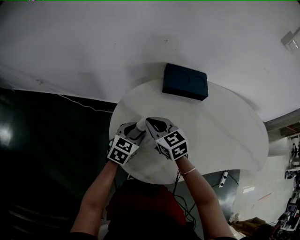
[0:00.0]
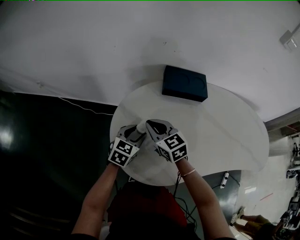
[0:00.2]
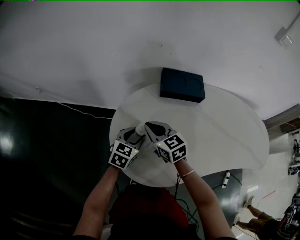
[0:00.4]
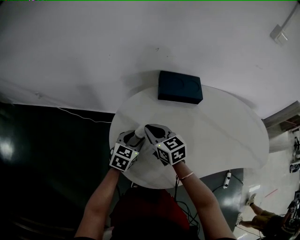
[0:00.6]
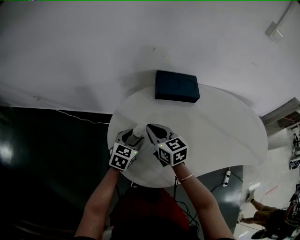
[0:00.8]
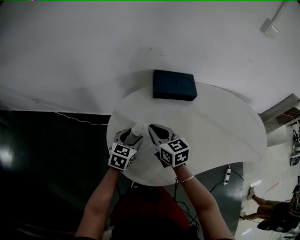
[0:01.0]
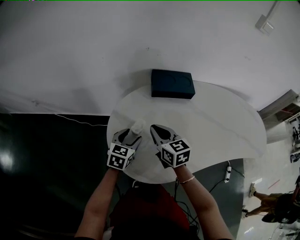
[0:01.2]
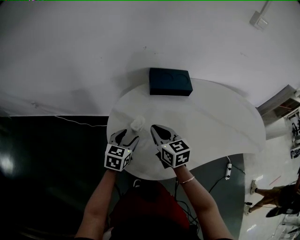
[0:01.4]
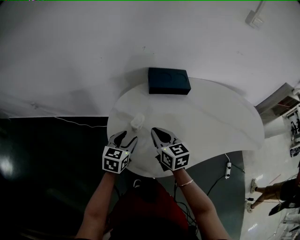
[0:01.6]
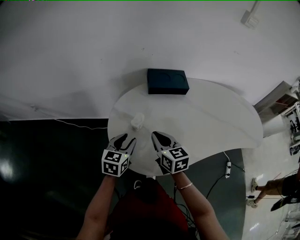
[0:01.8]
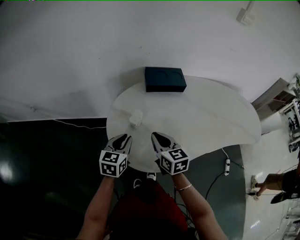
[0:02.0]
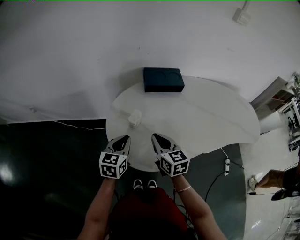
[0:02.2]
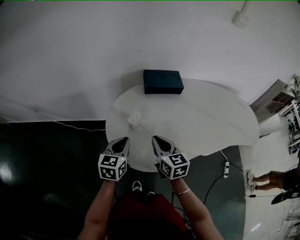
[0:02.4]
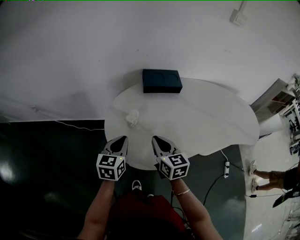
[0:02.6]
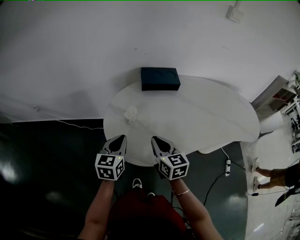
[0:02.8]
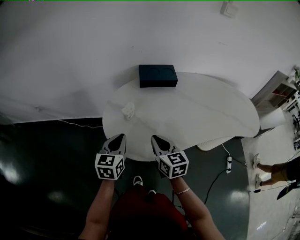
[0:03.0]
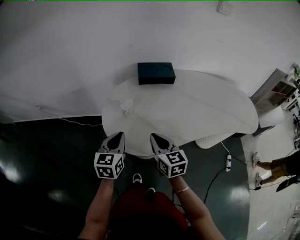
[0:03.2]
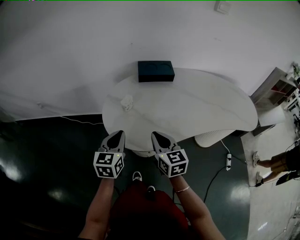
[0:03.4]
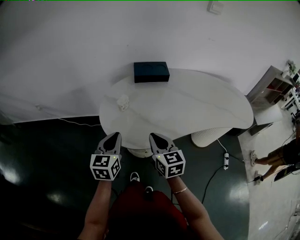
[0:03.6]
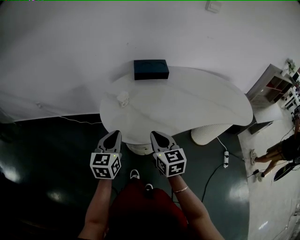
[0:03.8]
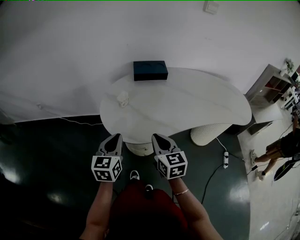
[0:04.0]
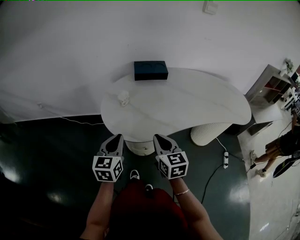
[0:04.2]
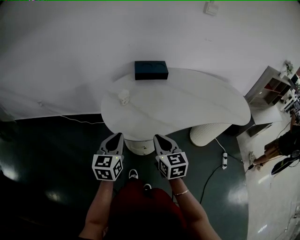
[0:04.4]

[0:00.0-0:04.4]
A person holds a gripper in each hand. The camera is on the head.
0:00.0 to 0:01.4: The right gripper goes approximately 5 cm to the right, and turns by some 20 degrees.
0:01.4 to 0:03.0: The left gripper travels backward and upward by approximately 15 cm, and closes, while the right gripper travels backward by roughly 15 cm.
0:03.0 to 0:04.4: The grippers both shift backward by roughly 15 cm.

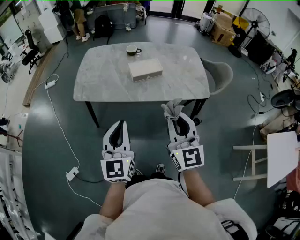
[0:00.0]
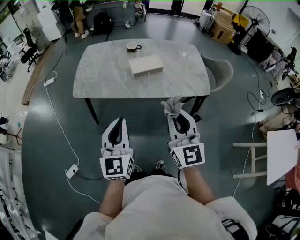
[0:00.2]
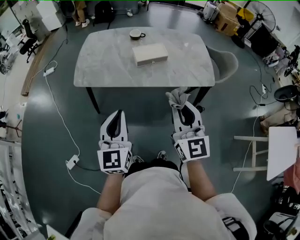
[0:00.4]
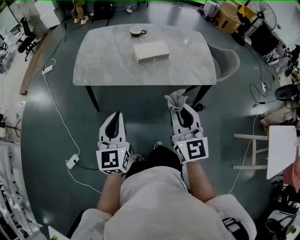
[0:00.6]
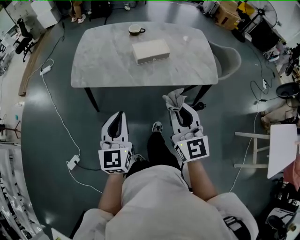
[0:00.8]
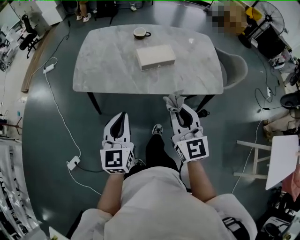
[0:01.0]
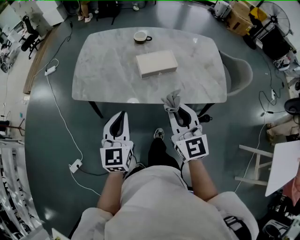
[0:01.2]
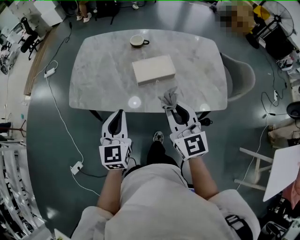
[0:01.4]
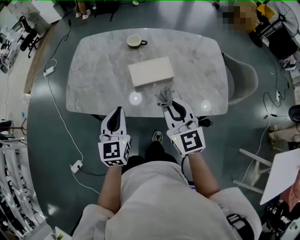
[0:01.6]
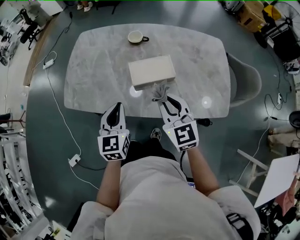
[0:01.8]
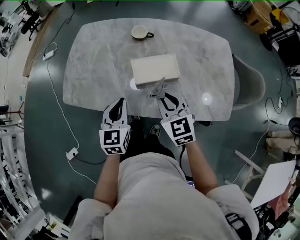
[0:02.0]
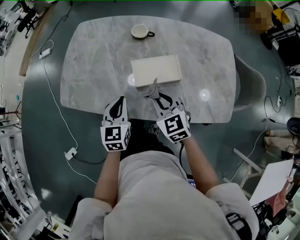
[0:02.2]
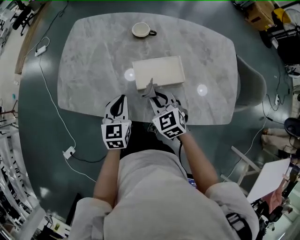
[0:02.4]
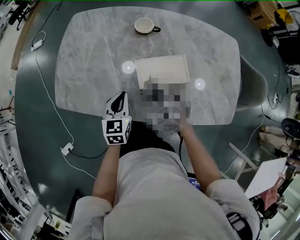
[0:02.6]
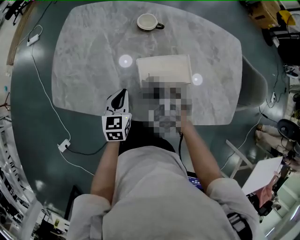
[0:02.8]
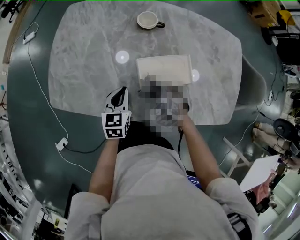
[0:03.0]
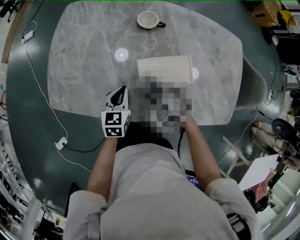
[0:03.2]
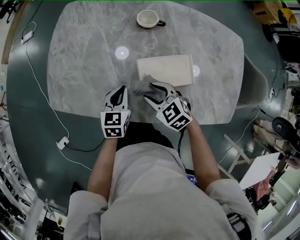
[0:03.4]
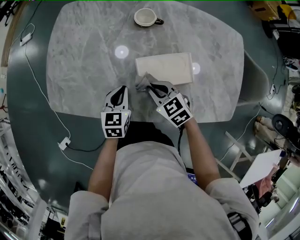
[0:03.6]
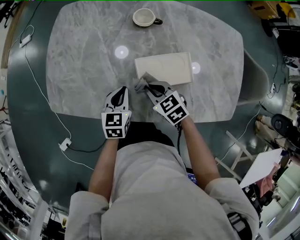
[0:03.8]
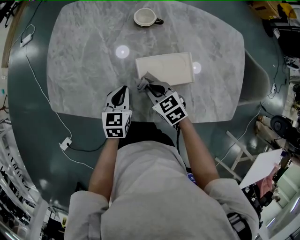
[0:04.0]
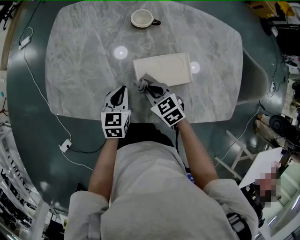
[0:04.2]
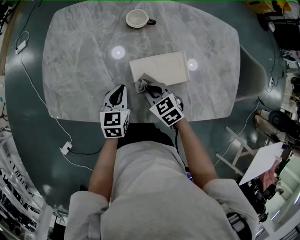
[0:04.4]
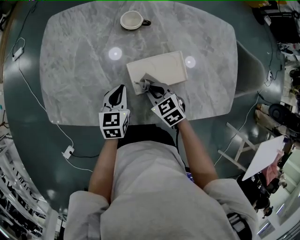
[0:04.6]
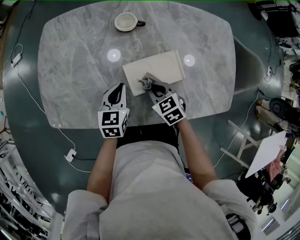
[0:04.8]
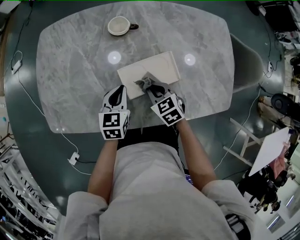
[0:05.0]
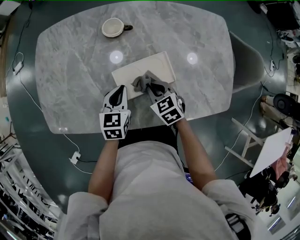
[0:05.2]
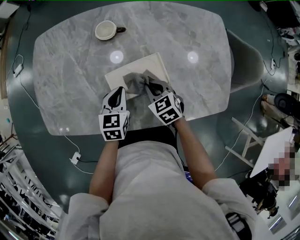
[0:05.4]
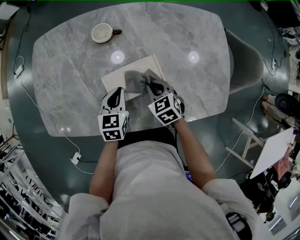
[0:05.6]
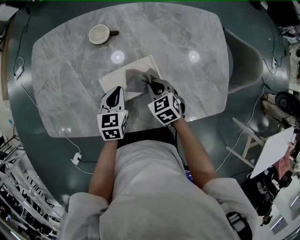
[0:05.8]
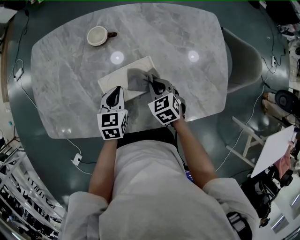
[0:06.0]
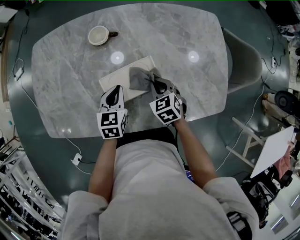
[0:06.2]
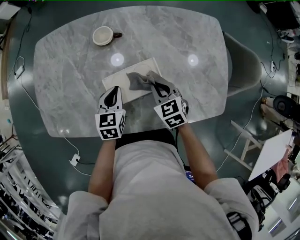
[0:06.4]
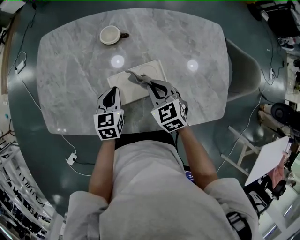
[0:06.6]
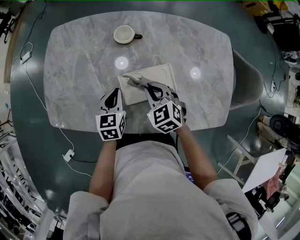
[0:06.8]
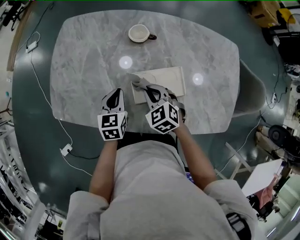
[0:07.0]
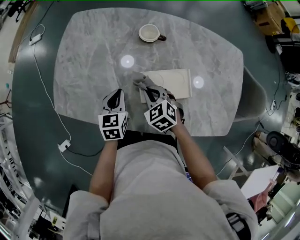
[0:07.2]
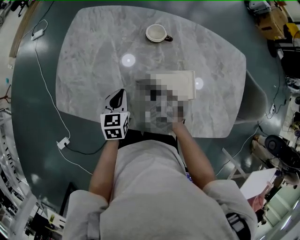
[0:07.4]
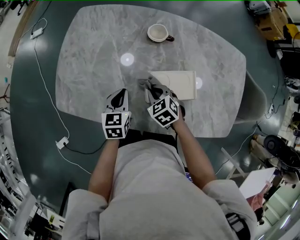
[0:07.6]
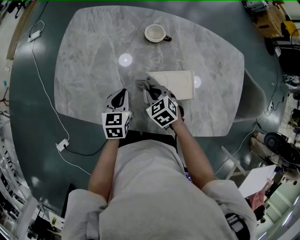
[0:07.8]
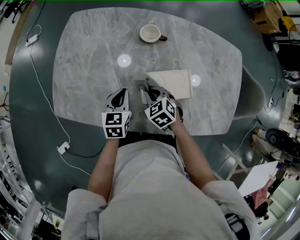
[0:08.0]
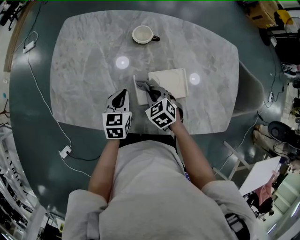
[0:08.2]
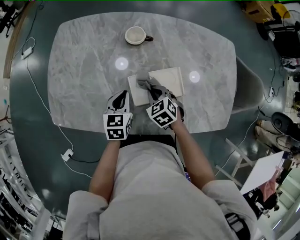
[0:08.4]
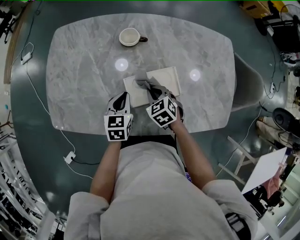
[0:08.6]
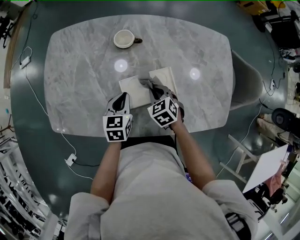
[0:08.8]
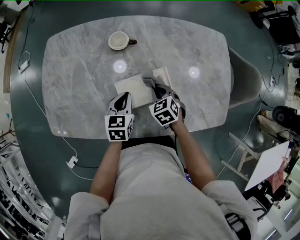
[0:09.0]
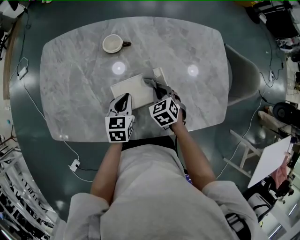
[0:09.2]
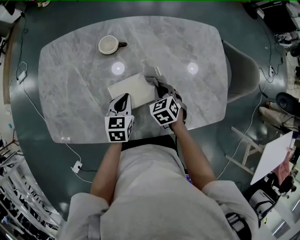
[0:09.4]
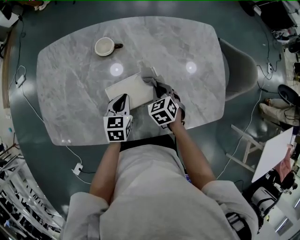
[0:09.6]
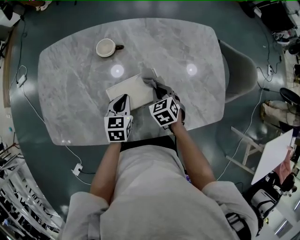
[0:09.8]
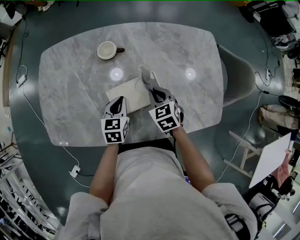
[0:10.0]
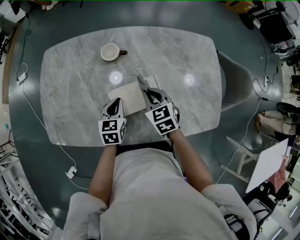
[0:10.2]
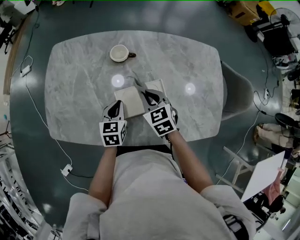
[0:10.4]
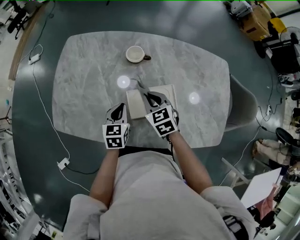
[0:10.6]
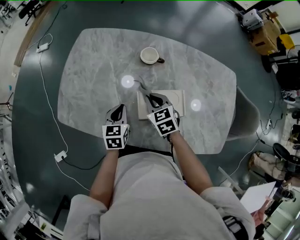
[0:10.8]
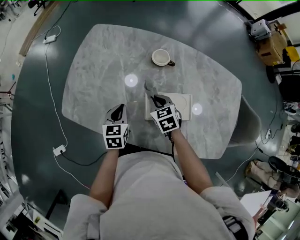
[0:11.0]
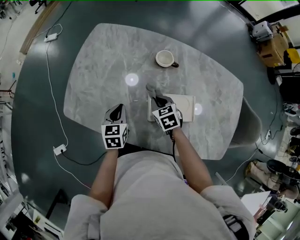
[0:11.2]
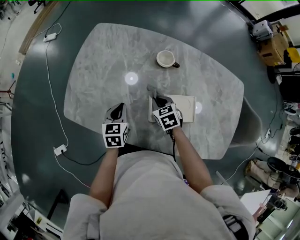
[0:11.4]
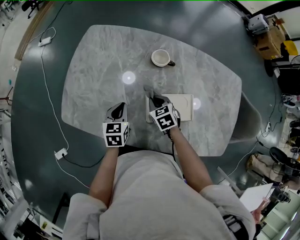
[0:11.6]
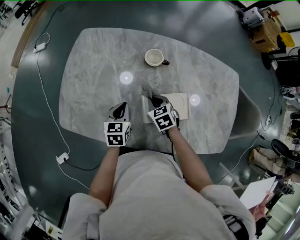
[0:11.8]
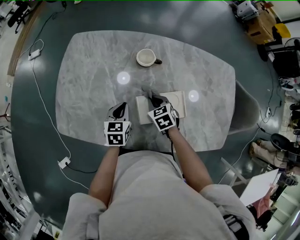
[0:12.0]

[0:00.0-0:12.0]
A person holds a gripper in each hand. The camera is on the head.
0:00.0 to 0:01.6: The left gripper moves forward and downward, approximately 30 cm. Meanwhile the right gripper travels forward by about 30 cm.
0:01.6 to 0:03.0: The grippers both shift downward and forward by roughly 30 cm. The left gripper rotates some 20 degrees; the right gripper points its fingers approximately 50 degrees further downward.
0:03.0 to 0:04.4: The right gripper changes its angle by roughly 30 degrees, and opens and closes again.
0:04.4 to 0:06.0: The grippers both shift to the right by about 15 cm.
0:06.0 to 0:07.6: The grippers both shift to the left by approximately 20 cm. The right gripper turns by roughly 30 degrees.
0:07.6 to 0:09.0: Both grippers travel together to the right, approximately 15 cm. The right gripper turns by roughly 20 degrees.
0:09.0 to 0:10.4: The right gripper is displaced upward by about 10 cm.
0:10.4 to 0:12.0: The right gripper heads downward and to the left, covering some 10 cm; the left gripper moves to the left, some 10 cm.

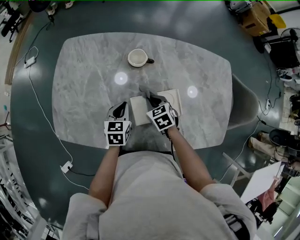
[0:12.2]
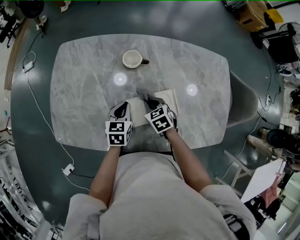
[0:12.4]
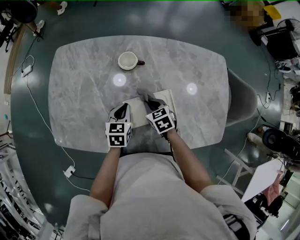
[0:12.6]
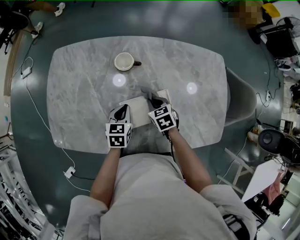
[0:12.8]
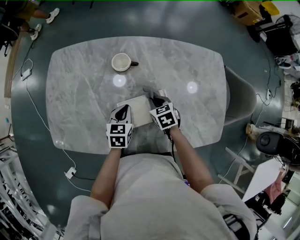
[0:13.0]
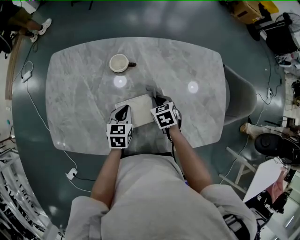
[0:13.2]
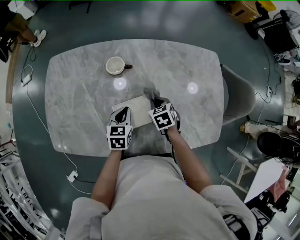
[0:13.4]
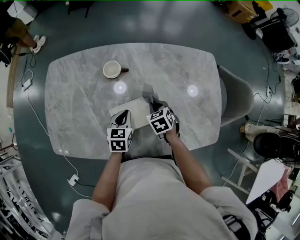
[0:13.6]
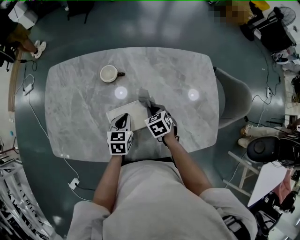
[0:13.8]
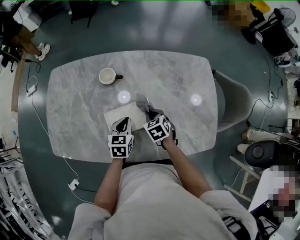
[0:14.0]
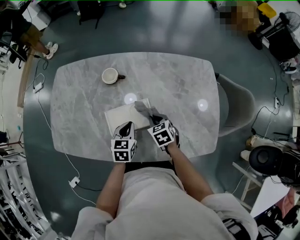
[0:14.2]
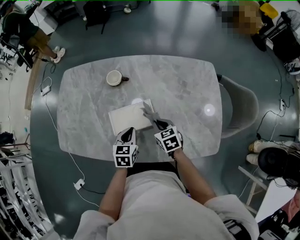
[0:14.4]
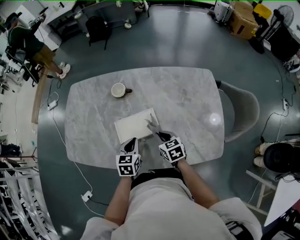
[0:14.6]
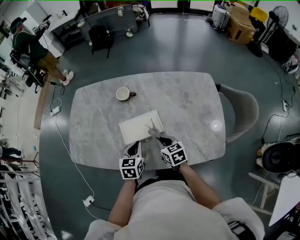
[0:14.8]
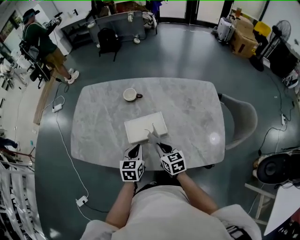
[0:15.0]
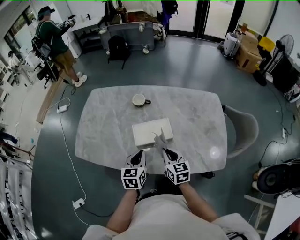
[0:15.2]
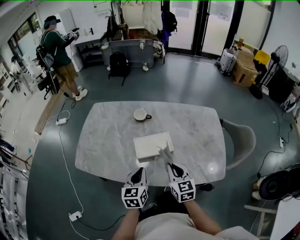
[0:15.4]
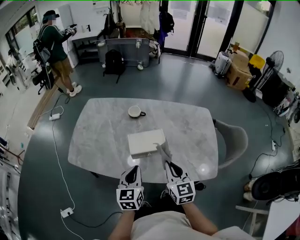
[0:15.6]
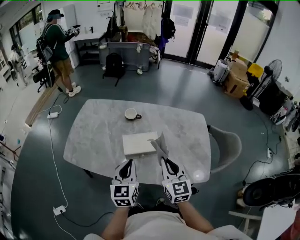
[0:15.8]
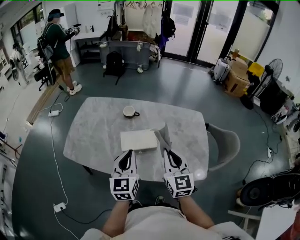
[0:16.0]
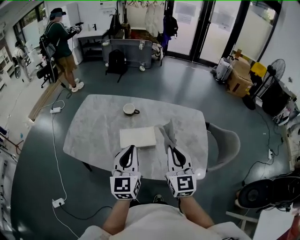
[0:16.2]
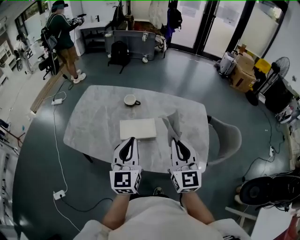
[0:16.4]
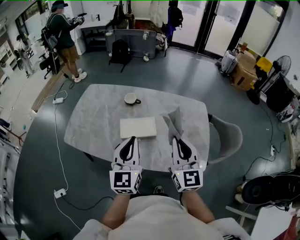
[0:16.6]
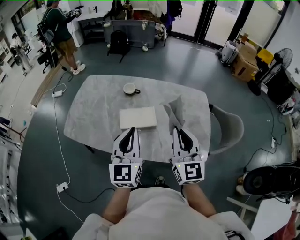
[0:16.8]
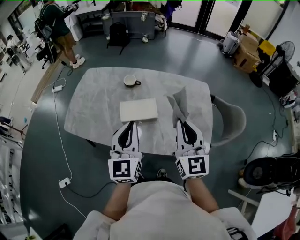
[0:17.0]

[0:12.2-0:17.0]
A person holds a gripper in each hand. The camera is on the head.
0:12.2 to 0:13.8: Both grippers travel together to the right, roughly 15 cm.
0:13.8 to 0:15.4: The two grippers go about 25 cm backward and upward. The right gripper points its fingers roughly 40 degrees further upward, while the left gripper turns by approximately 20 degrees.
0:15.4 to 0:17.0: Both grippers move upward and to the right, roughly 20 cm. The left gripper changes its angle by about 30 degrees. The right gripper swivels roughly 30 degrees.

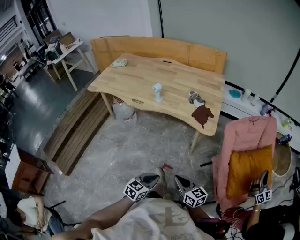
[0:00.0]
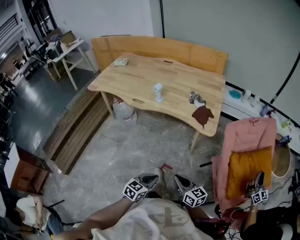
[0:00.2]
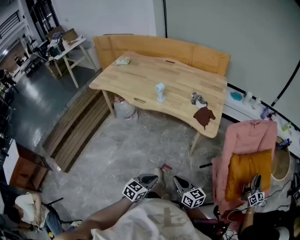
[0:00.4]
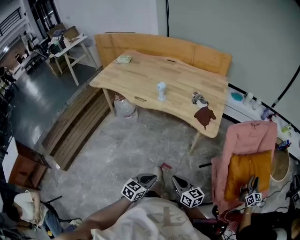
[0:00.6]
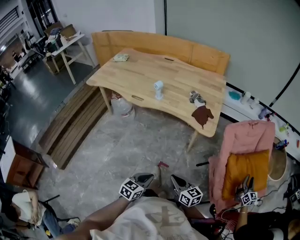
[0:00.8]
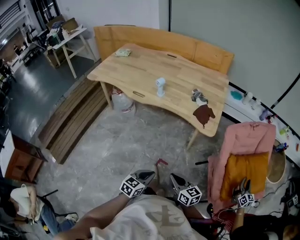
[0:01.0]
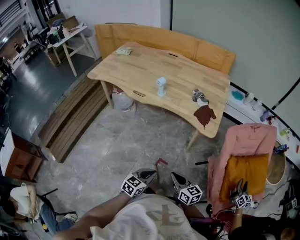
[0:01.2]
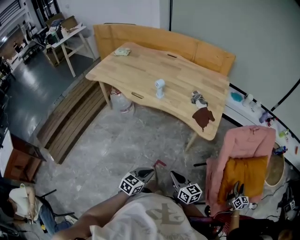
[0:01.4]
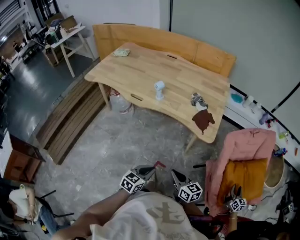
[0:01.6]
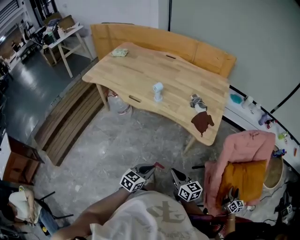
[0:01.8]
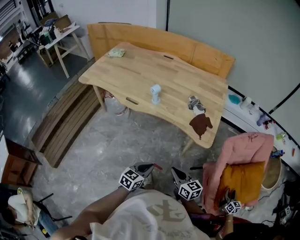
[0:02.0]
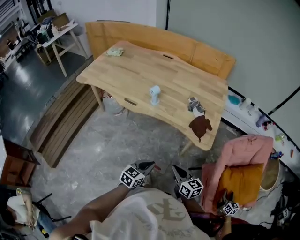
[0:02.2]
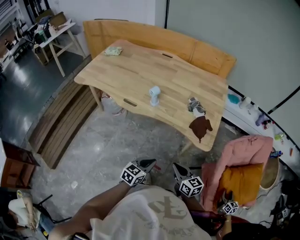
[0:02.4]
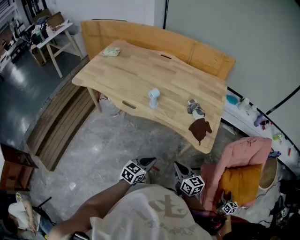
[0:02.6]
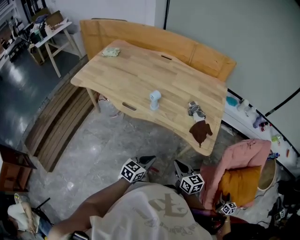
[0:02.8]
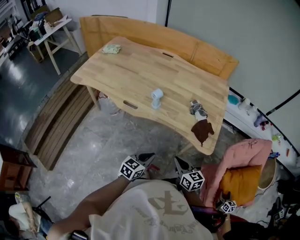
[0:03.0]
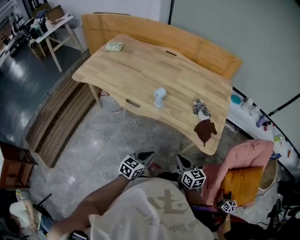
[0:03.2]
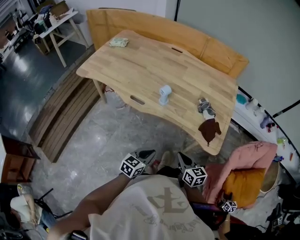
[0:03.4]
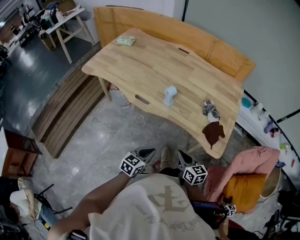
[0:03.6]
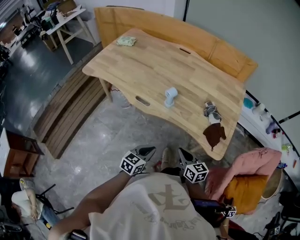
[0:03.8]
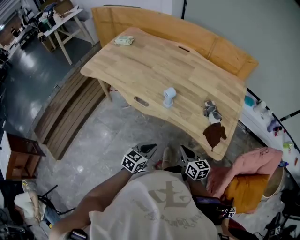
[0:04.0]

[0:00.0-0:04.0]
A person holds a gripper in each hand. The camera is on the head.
0:00.0 to 0:01.4: The grippers both shift forward by approximately 5 cm.
0:01.4 to 0:02.6: The two grippers go roughly 20 cm forward.
0:02.6 to 0:04.0: Both grippers travel together forward and to the left, some 15 cm.
